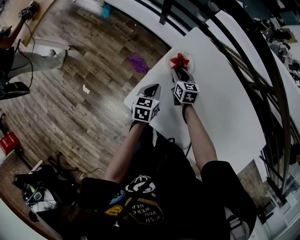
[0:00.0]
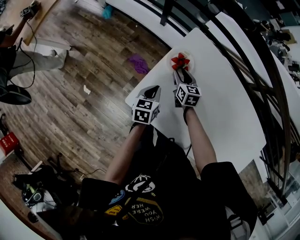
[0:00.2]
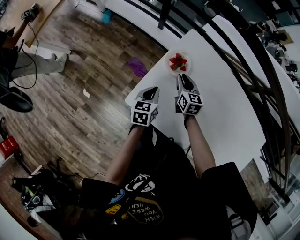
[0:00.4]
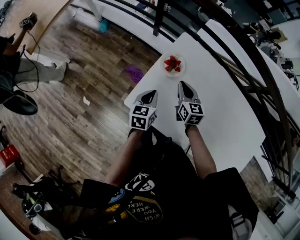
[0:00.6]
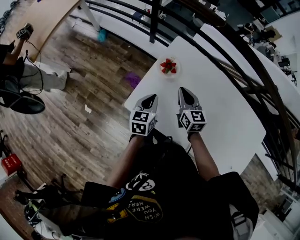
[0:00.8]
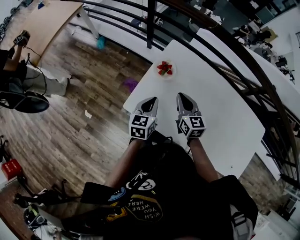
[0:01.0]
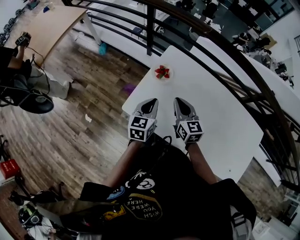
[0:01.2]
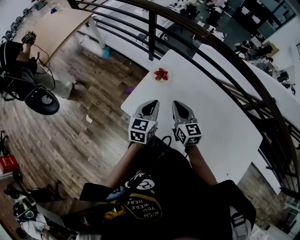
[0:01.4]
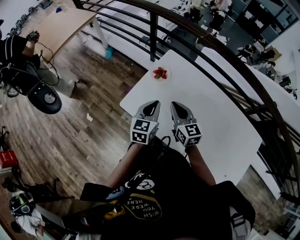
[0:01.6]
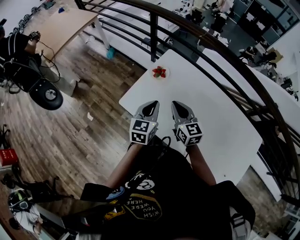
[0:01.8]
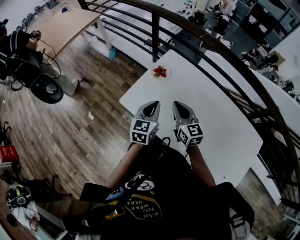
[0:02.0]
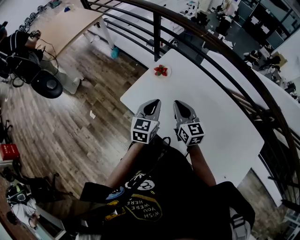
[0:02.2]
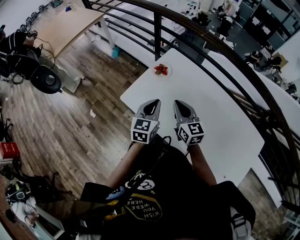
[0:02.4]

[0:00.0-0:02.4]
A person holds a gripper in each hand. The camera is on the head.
0:00.0 to 0:01.2: The grippers both shift upward and backward by some 25 cm. The left gripper changes its angle by roughly 20 degrees; the right gripper turns by some 20 degrees, and closes its fingers.
0:01.2 to 0:02.4: The right gripper goes about 10 cm backward and to the right, while the left gripper travels backward, to the right and upward by approximately 15 cm.

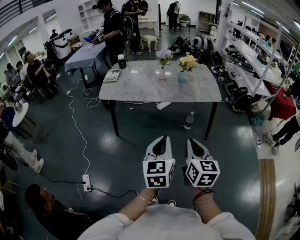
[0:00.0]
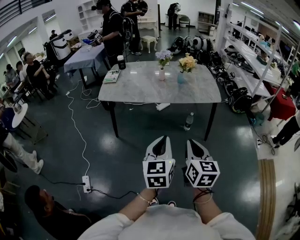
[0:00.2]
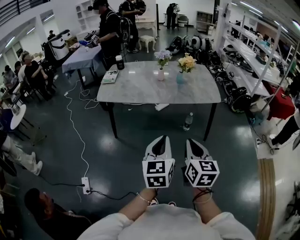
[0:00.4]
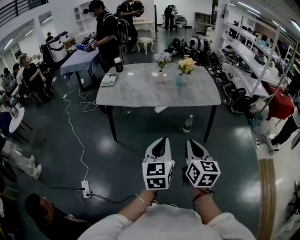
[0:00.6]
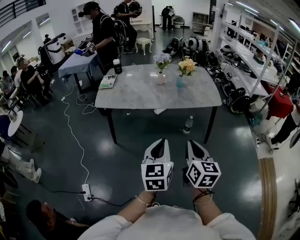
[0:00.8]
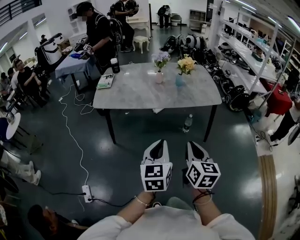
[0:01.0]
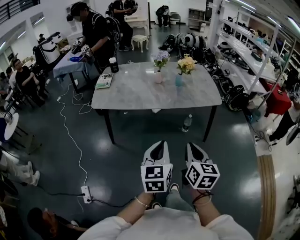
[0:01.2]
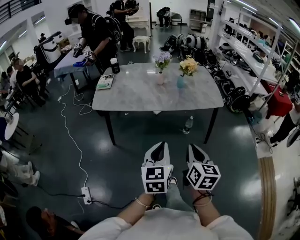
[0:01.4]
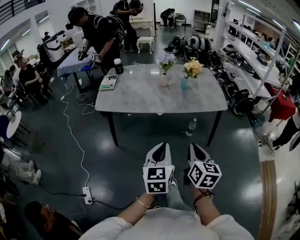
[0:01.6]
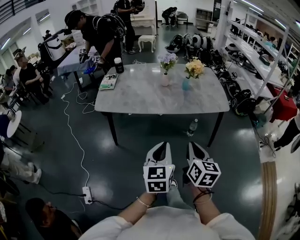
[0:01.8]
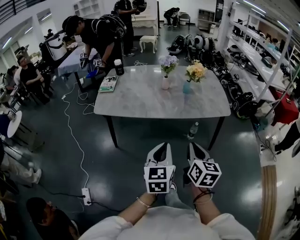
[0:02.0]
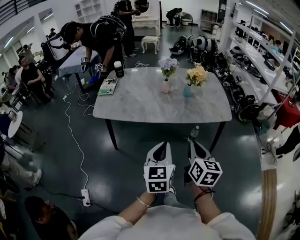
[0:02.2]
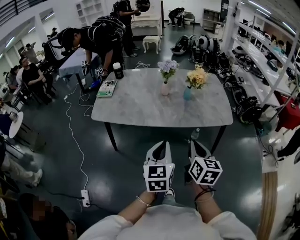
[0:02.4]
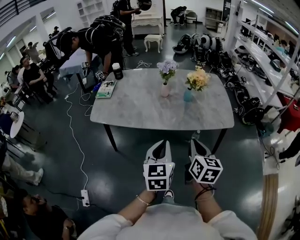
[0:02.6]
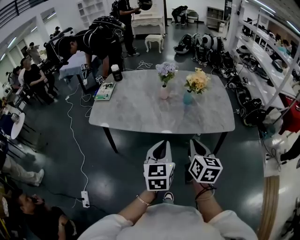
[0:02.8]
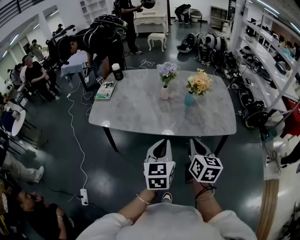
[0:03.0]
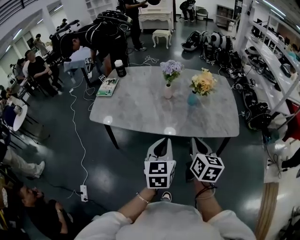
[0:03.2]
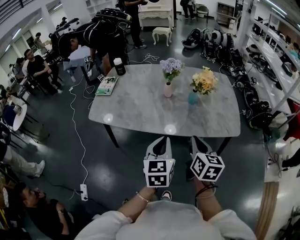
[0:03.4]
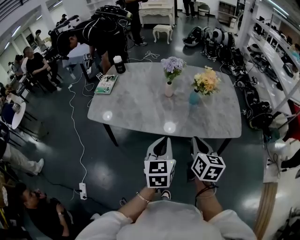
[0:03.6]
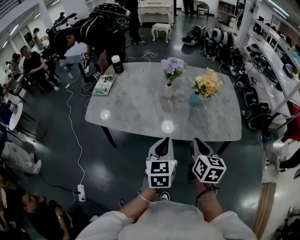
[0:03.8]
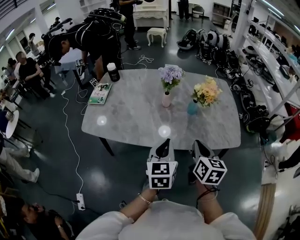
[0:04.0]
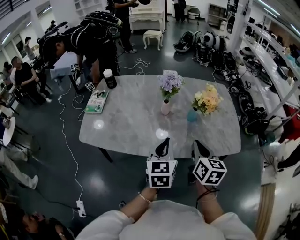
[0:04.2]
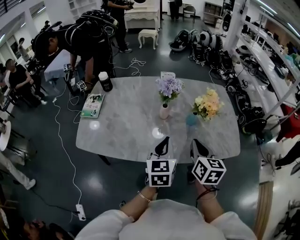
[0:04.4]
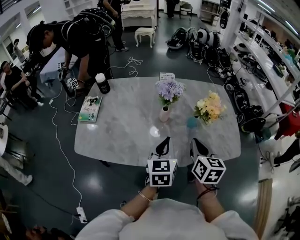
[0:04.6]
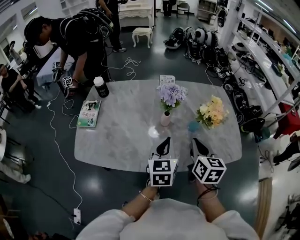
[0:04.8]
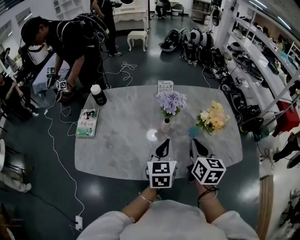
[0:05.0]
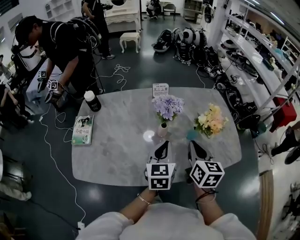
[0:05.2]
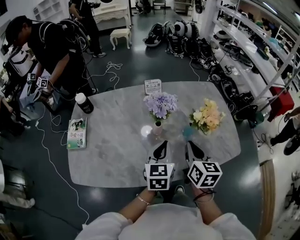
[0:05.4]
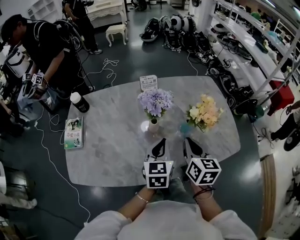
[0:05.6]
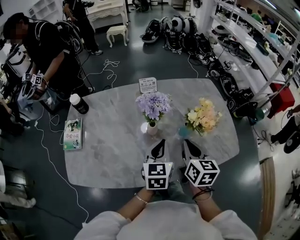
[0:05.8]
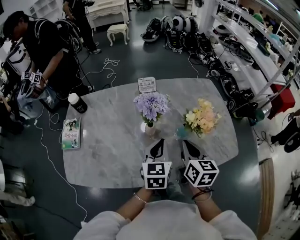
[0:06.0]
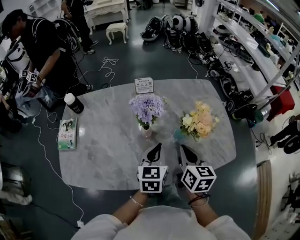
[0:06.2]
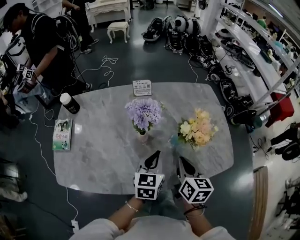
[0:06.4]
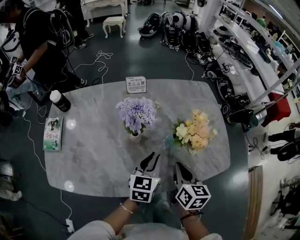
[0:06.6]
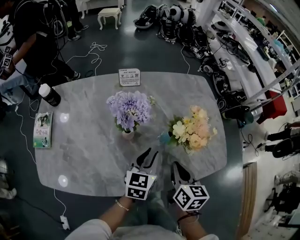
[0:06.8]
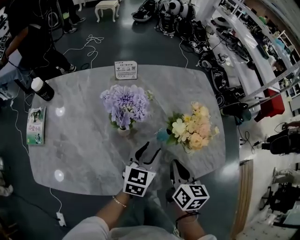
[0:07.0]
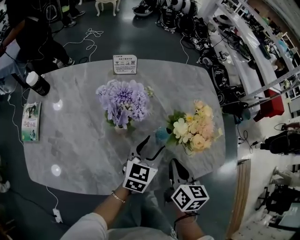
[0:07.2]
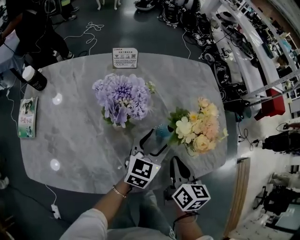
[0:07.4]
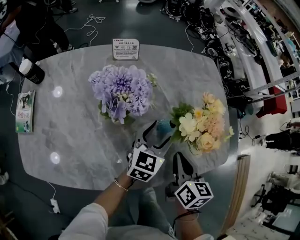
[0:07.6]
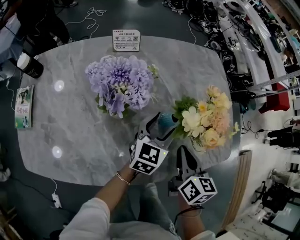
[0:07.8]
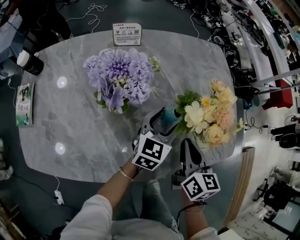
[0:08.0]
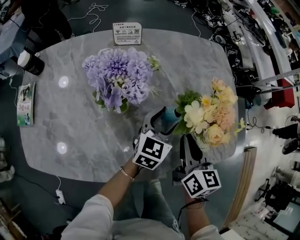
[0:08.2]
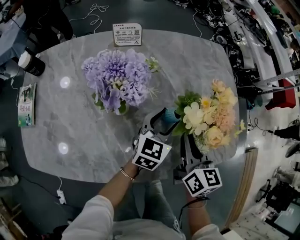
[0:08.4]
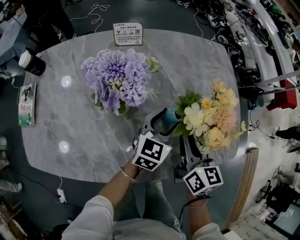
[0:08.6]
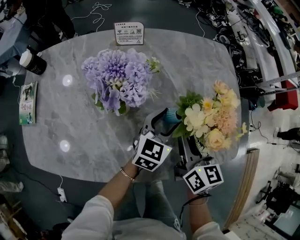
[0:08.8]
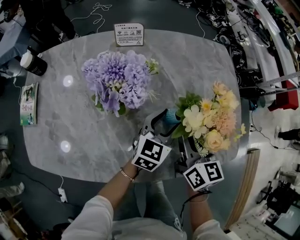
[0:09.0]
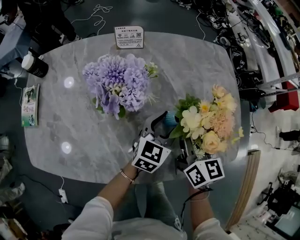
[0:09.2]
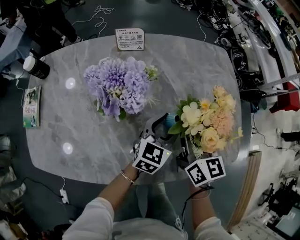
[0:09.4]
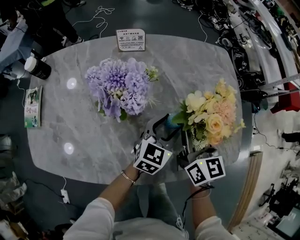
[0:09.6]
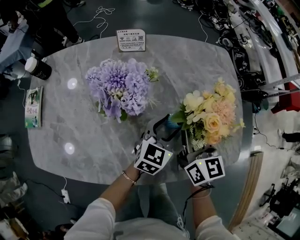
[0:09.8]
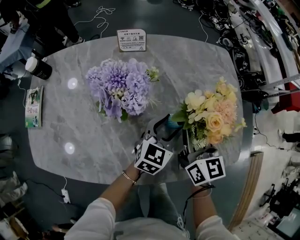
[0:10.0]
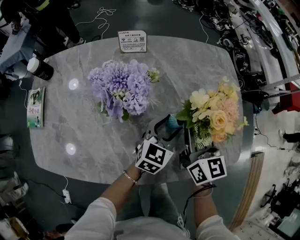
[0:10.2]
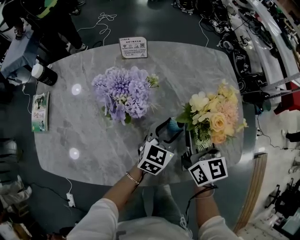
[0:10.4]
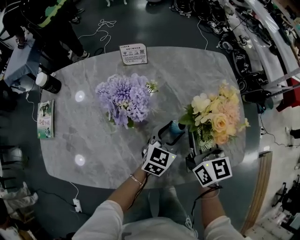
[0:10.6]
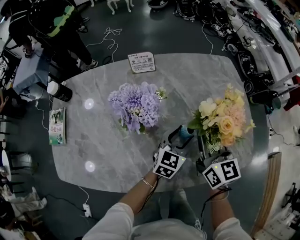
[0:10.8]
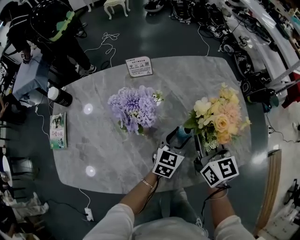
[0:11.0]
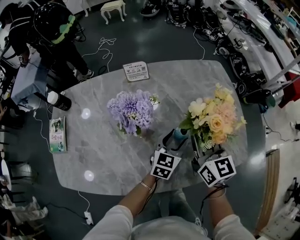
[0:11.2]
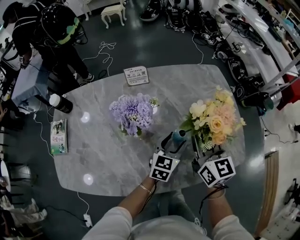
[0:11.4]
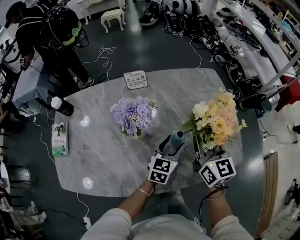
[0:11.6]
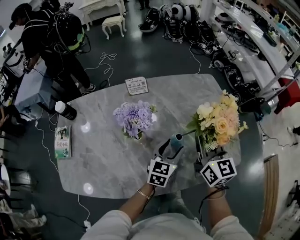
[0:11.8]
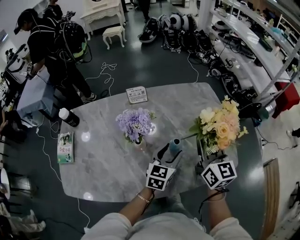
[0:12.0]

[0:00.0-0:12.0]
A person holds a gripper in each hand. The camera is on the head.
0:00.0 to 0:01.6: The left gripper heads forward and to the left, covering roughly 10 cm. Meanwhile the right gripper heads forward, covering roughly 10 cm.
0:01.6 to 0:03.0: The grippers both shift forward by roughly 25 cm.
0:03.0 to 0:04.4: The two grippers go roughly 20 cm forward.
0:04.4 to 0:06.0: The two grippers go some 15 cm forward.
0:06.0 to 0:07.6: The left gripper is displaced downward, to the right and forward by some 20 cm, and opens. The right gripper goes approximately 15 cm downward and to the right.
0:07.6 to 0:09.0: The right gripper moves forward, some 5 cm, and opens its fingers.
0:09.0 to 0:10.4: The right gripper moves about 5 cm.
0:10.4 to 0:12.0: Both grippers move upward, roughly 10 cm.

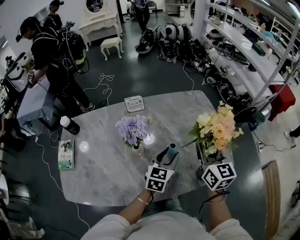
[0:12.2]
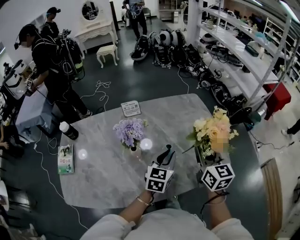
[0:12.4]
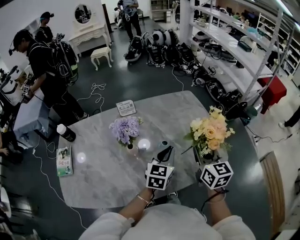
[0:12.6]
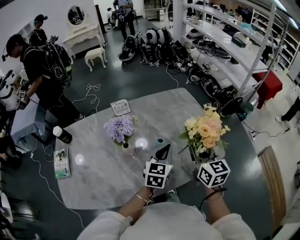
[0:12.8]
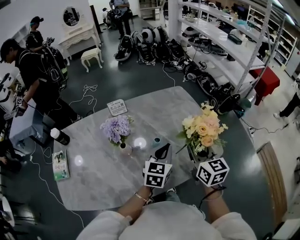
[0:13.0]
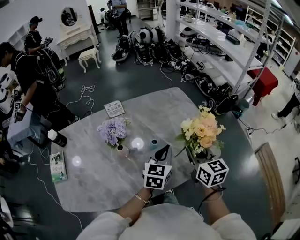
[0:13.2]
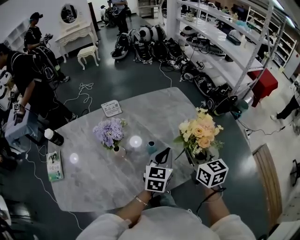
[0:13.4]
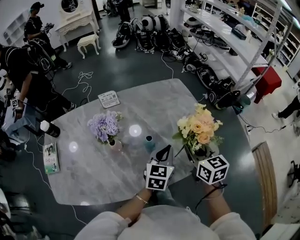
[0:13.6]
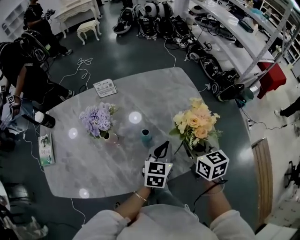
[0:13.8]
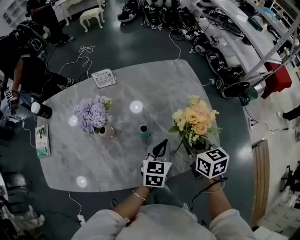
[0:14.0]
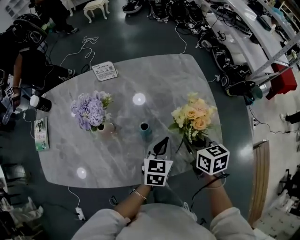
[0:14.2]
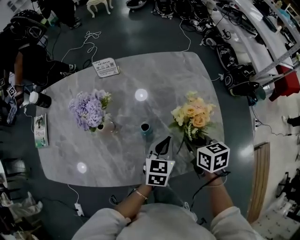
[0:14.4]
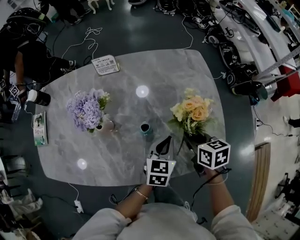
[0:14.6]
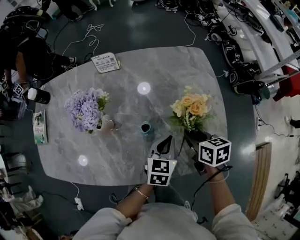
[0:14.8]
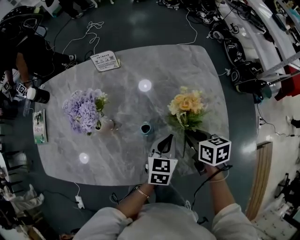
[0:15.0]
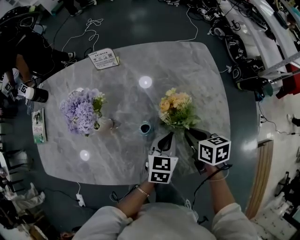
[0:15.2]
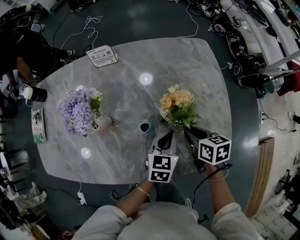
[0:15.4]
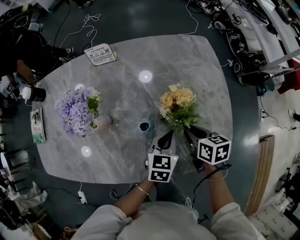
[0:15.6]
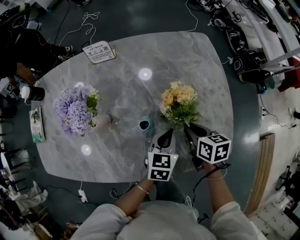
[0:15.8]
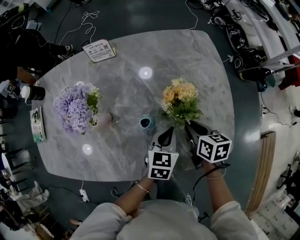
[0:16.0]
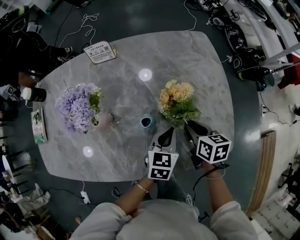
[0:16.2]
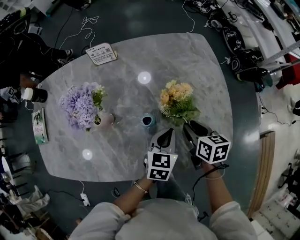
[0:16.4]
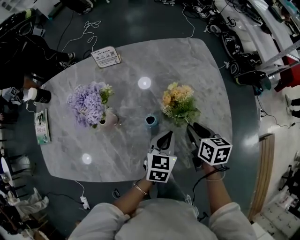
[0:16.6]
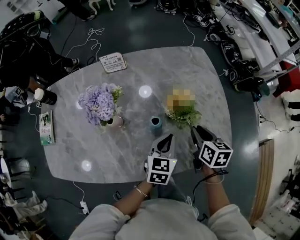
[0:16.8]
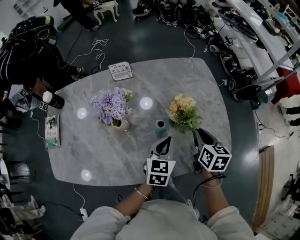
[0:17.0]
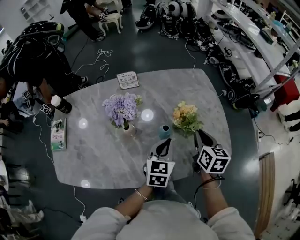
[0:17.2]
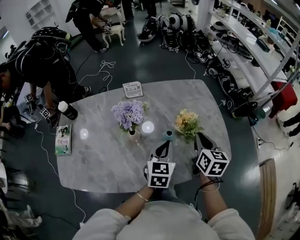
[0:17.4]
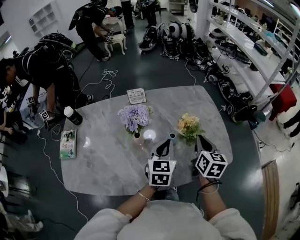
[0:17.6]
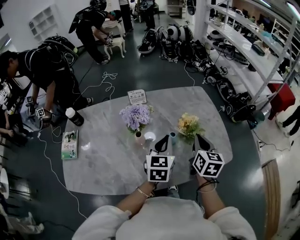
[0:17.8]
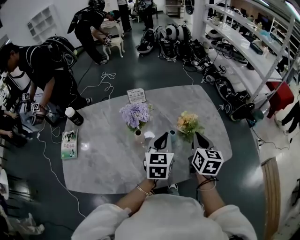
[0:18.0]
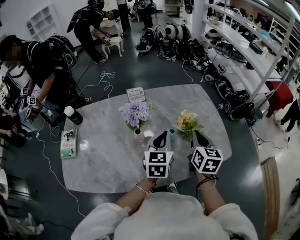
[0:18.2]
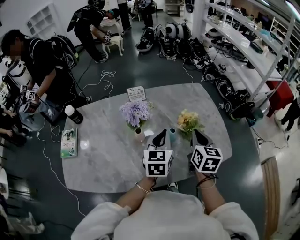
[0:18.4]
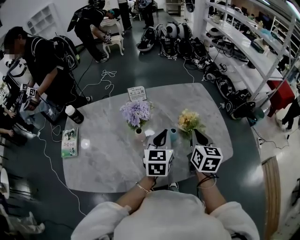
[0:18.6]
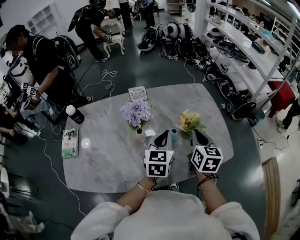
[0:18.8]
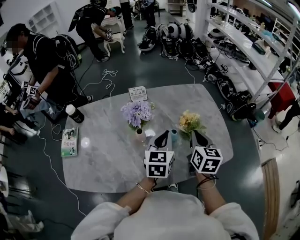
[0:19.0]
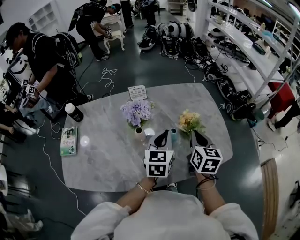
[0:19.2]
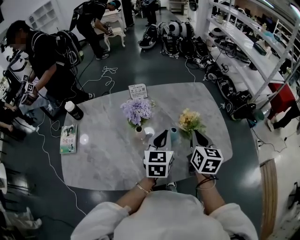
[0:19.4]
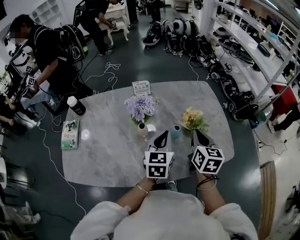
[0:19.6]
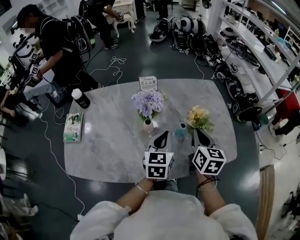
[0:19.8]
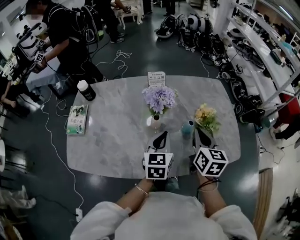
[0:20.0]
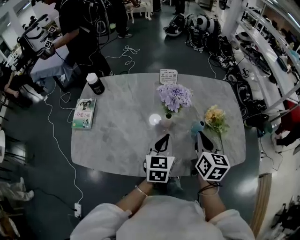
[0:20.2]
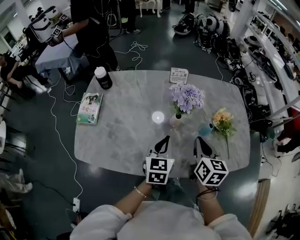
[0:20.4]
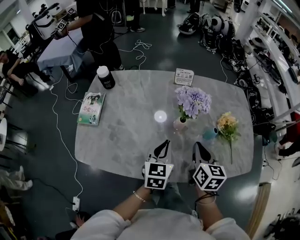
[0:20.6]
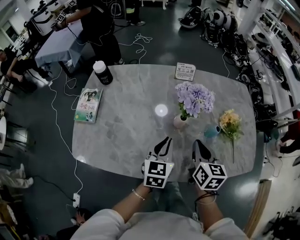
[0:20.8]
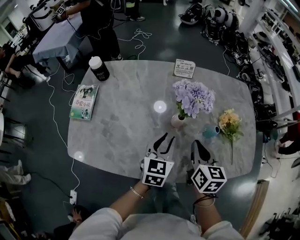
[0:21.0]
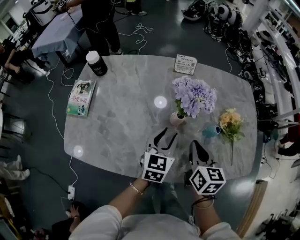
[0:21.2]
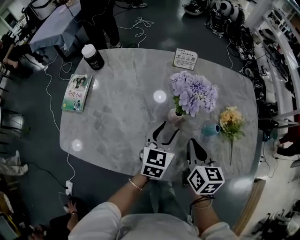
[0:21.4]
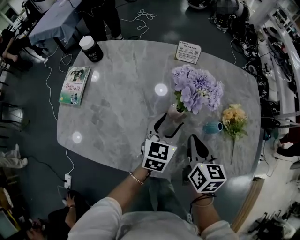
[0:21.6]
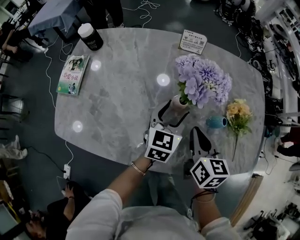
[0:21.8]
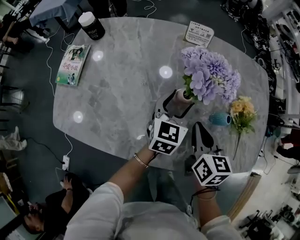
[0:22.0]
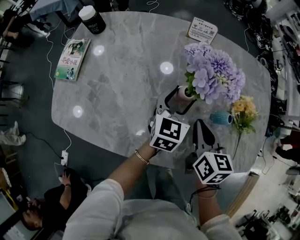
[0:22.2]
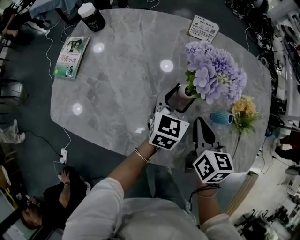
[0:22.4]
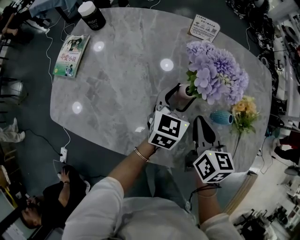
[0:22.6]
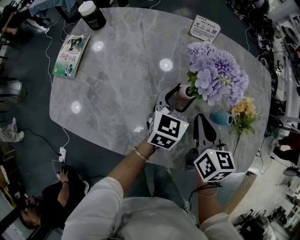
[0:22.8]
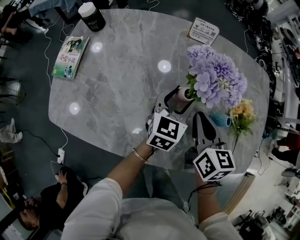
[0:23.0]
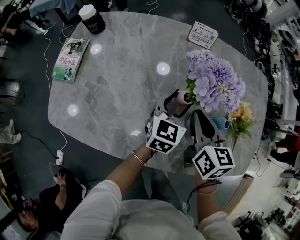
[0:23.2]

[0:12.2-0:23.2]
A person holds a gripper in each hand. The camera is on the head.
0:12.2 to 0:13.8: The left gripper is displaced to the right by approximately 10 cm, and closes its fingers; the right gripper moves downward and to the right, about 15 cm, and changes its angle by approximately 20 degrees.
0:13.8 to 0:15.4: The right gripper goes roughly 15 cm downward and forward, and swivels about 30 degrees. The left gripper shifts about 10 cm downward.
0:15.4 to 0:17.0: The right gripper is displaced upward by some 10 cm, and swivels some 30 degrees; the left gripper heads upward and to the left, covering roughly 10 cm.
0:17.0 to 0:18.4: The two grippers go approximately 15 cm upward and to the left.
0:18.4 to 0:20.0: Both grippers move to the left, some 10 cm.
0:20.0 to 0:21.6: The right gripper heads downward and to the left, covering some 15 cm; the left gripper travels downward and forward by about 10 cm, and opens its fingers.
0:21.6 to 0:23.2: The left gripper ends up about 5 cm from where it was, while the right gripper shifts about 5 cm forward.
